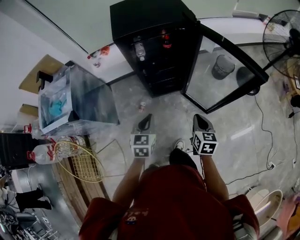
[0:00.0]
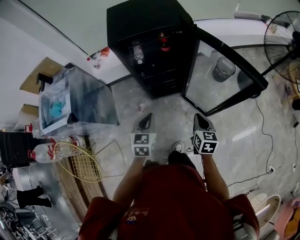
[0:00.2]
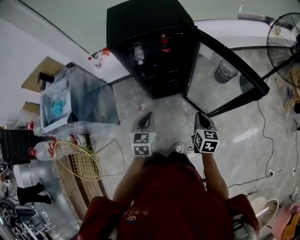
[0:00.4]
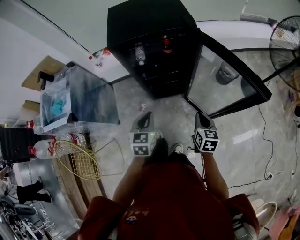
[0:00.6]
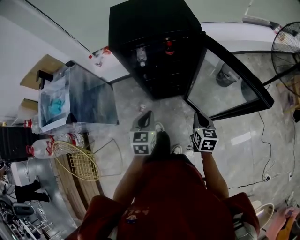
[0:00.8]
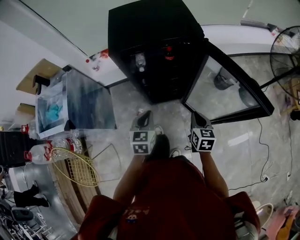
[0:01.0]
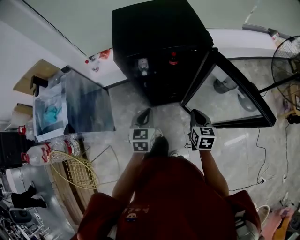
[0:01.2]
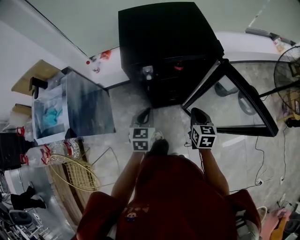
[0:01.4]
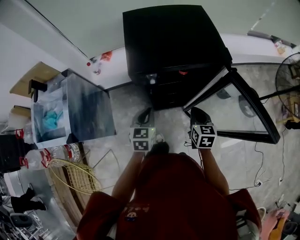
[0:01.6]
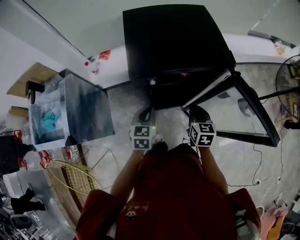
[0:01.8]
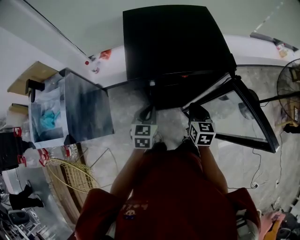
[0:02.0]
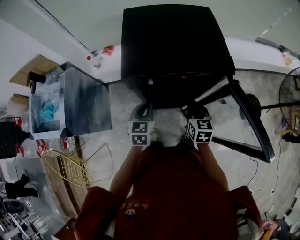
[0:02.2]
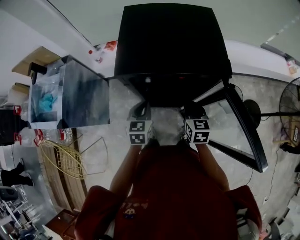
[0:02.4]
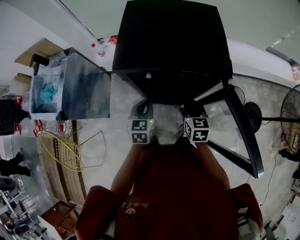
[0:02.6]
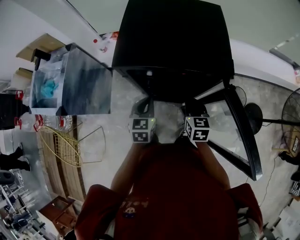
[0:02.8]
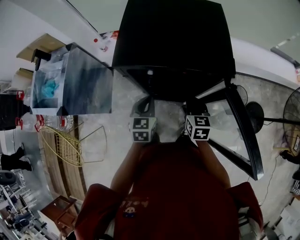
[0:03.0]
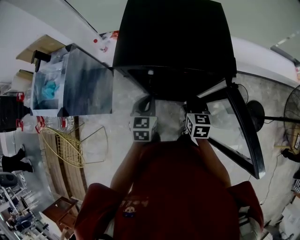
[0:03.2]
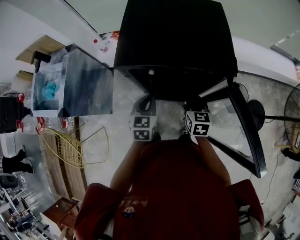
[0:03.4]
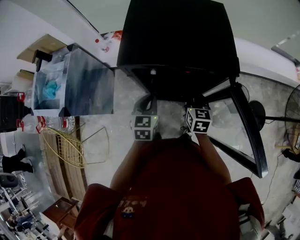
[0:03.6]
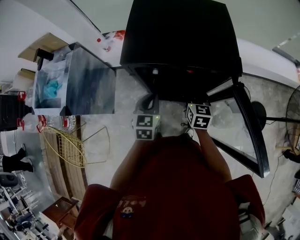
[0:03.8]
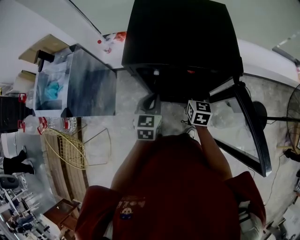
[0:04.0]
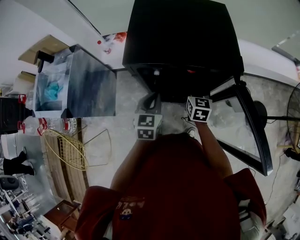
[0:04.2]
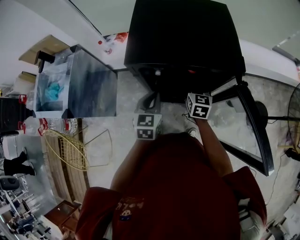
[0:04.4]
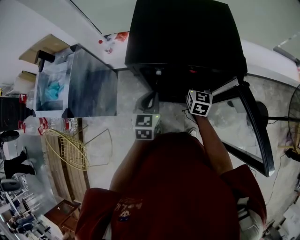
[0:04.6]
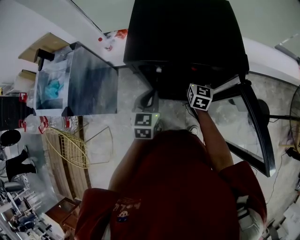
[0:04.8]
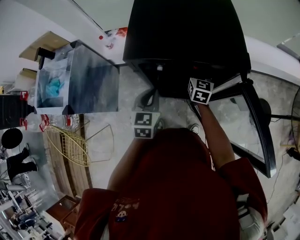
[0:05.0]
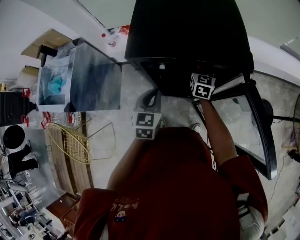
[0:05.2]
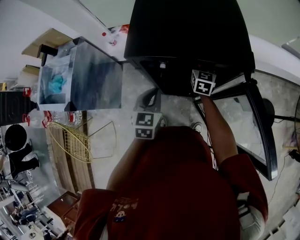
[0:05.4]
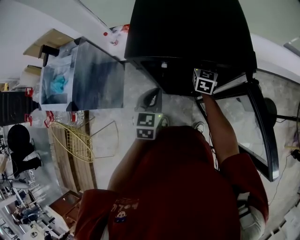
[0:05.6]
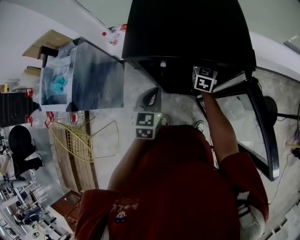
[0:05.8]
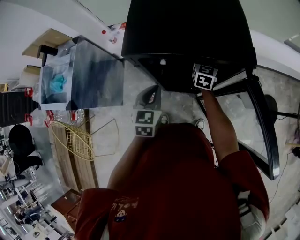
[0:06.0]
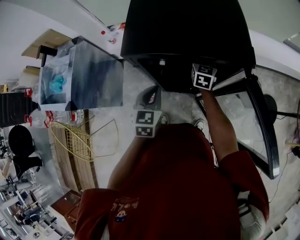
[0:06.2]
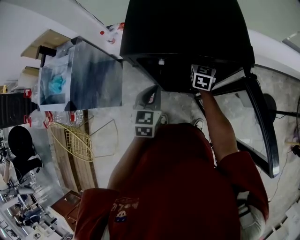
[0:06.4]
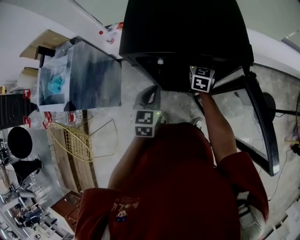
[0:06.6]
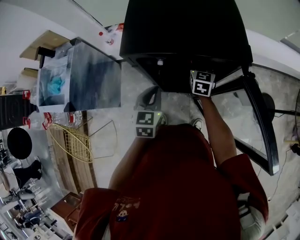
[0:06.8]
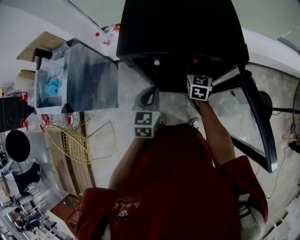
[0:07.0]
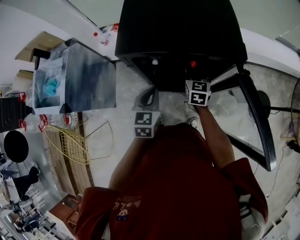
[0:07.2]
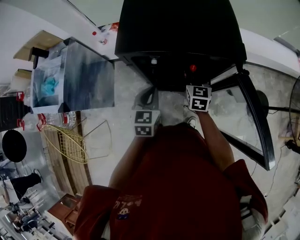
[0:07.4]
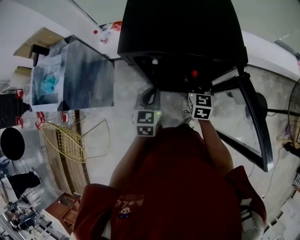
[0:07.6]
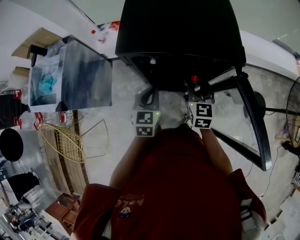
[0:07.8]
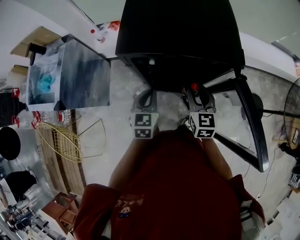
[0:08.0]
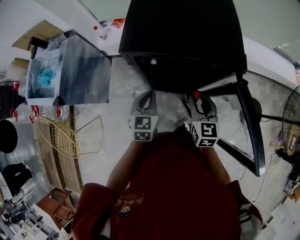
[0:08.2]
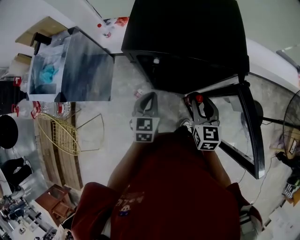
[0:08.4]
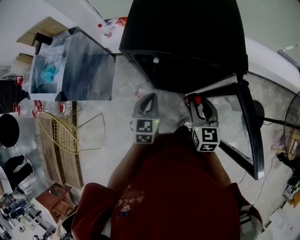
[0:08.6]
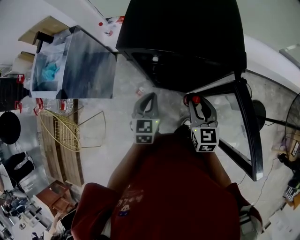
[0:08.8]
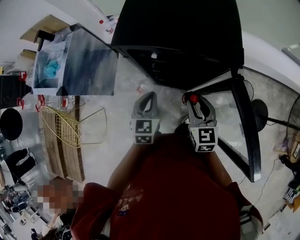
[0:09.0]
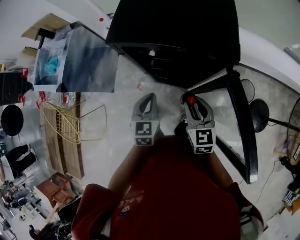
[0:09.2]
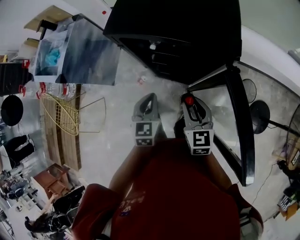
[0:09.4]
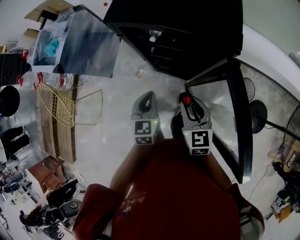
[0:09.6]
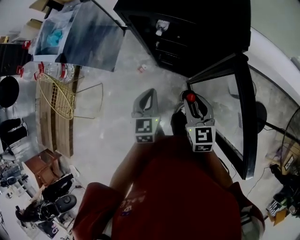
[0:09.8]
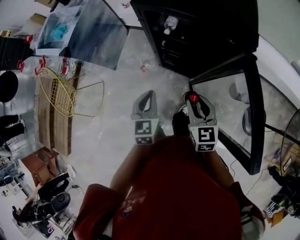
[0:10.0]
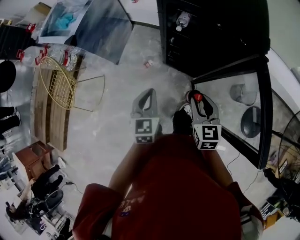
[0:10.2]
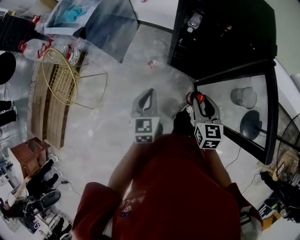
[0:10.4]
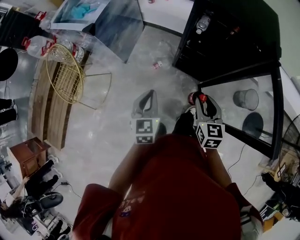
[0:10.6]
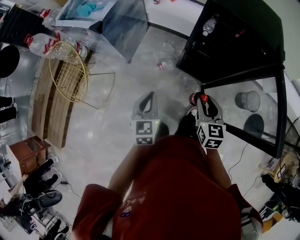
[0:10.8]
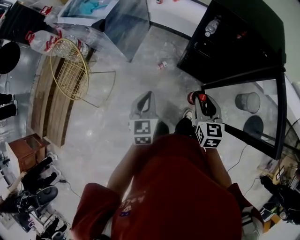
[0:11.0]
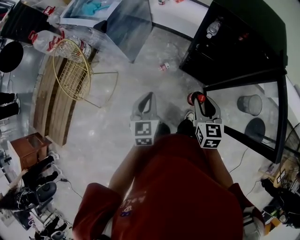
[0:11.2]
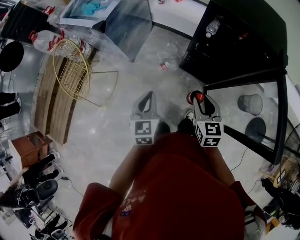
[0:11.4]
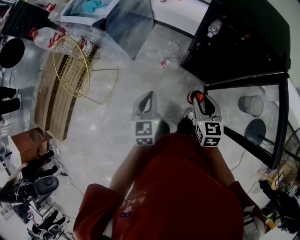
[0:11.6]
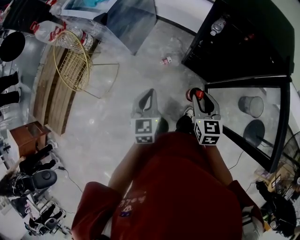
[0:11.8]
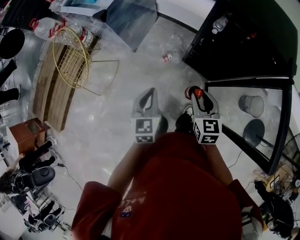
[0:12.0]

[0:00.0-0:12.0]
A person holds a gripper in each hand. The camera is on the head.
0:00.0 to 0:01.6: Both grippers move forward, approximately 25 cm.
0:01.6 to 0:03.0: The left gripper travels to the right by roughly 5 cm. Meanwhile the right gripper goes some 10 cm forward.
0:03.0 to 0:04.4: The right gripper moves forward, some 10 cm, and opens up.
0:04.4 to 0:06.0: The right gripper is displaced forward by about 10 cm.
0:06.0 to 0:07.6: The right gripper goes some 15 cm backward.
0:07.6 to 0:09.0: The right gripper shifts roughly 10 cm backward.
0:09.0 to 0:10.4: The grippers both shift backward and to the left by about 20 cm.
0:10.4 to 0:12.0: The two grippers go about 10 cm to the left.

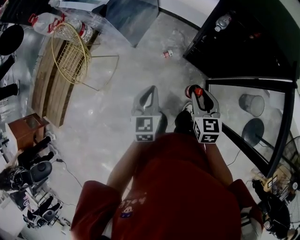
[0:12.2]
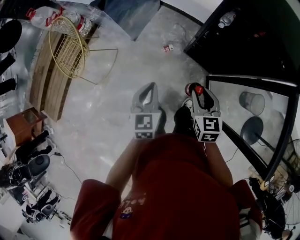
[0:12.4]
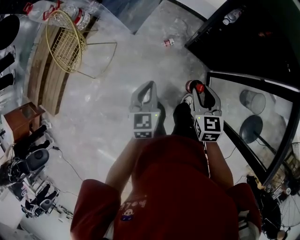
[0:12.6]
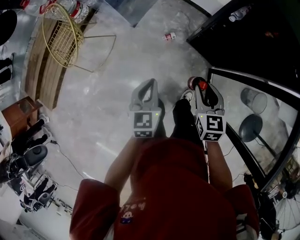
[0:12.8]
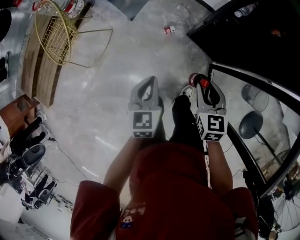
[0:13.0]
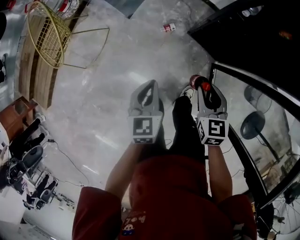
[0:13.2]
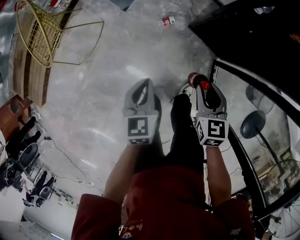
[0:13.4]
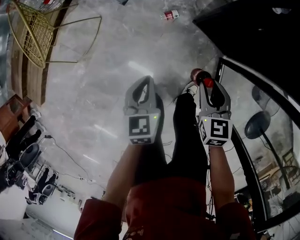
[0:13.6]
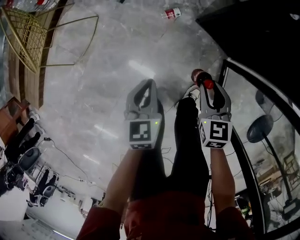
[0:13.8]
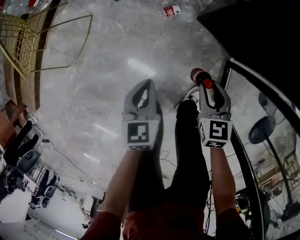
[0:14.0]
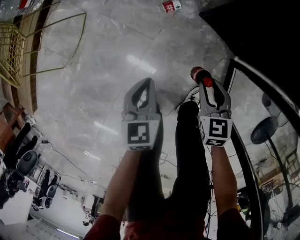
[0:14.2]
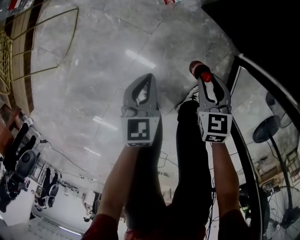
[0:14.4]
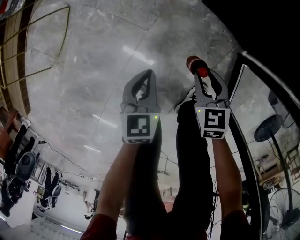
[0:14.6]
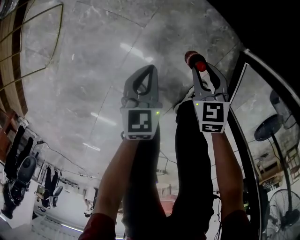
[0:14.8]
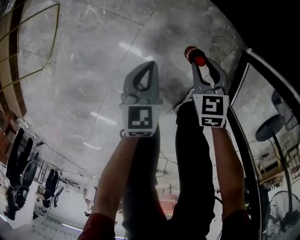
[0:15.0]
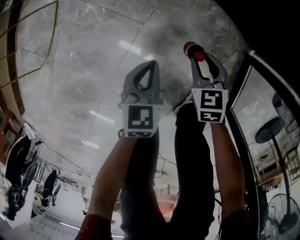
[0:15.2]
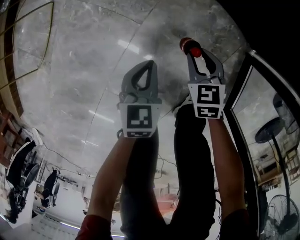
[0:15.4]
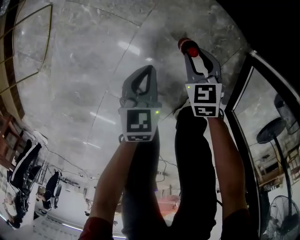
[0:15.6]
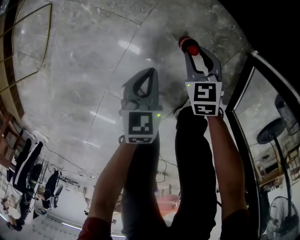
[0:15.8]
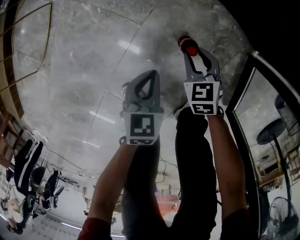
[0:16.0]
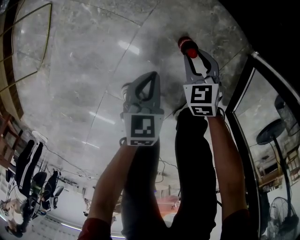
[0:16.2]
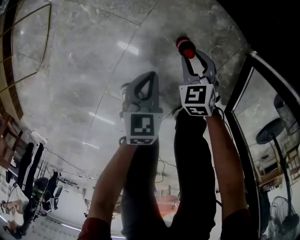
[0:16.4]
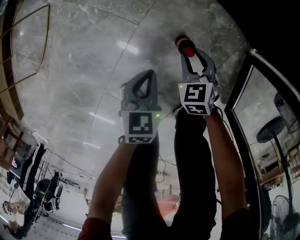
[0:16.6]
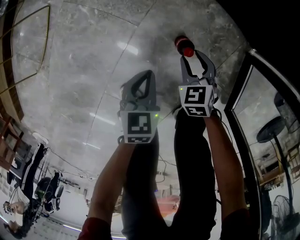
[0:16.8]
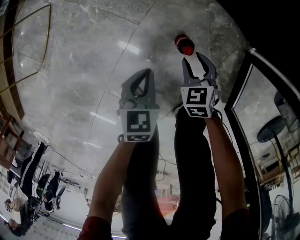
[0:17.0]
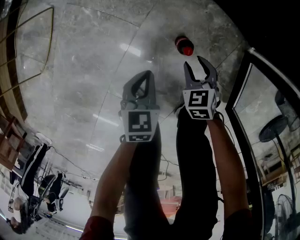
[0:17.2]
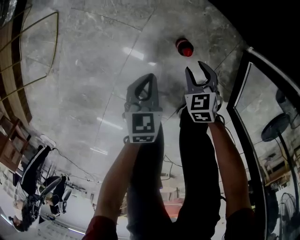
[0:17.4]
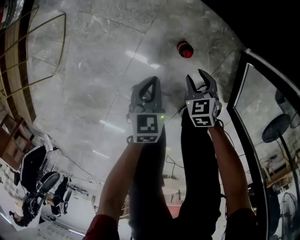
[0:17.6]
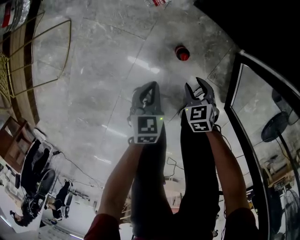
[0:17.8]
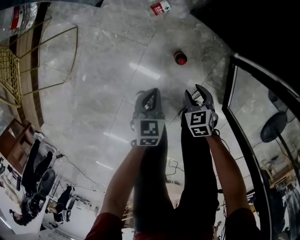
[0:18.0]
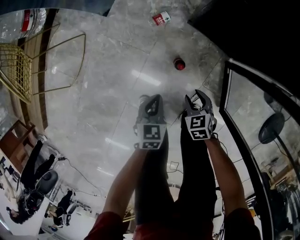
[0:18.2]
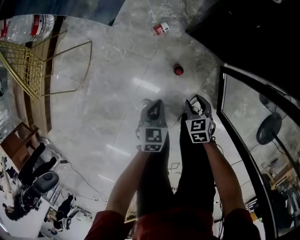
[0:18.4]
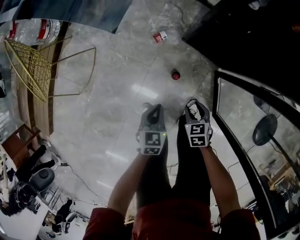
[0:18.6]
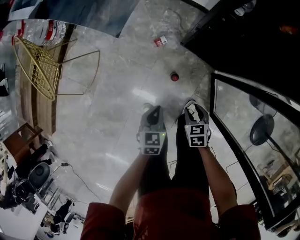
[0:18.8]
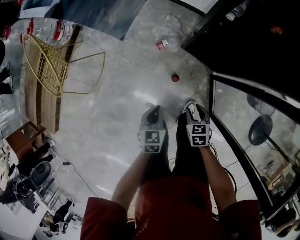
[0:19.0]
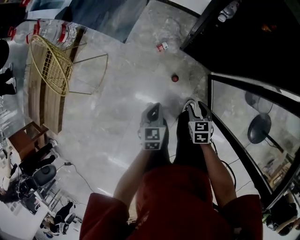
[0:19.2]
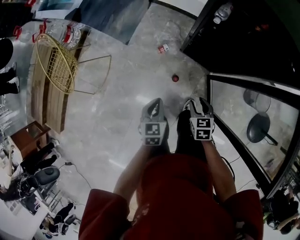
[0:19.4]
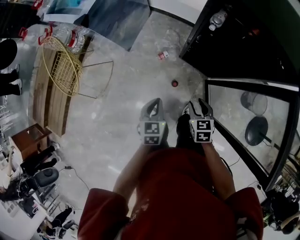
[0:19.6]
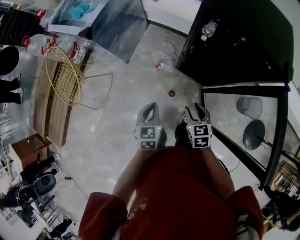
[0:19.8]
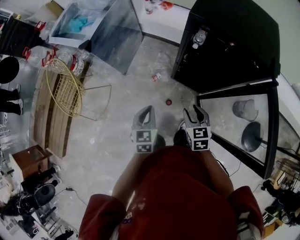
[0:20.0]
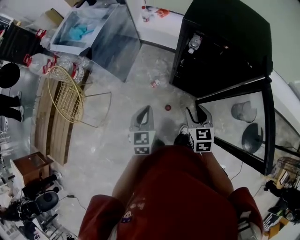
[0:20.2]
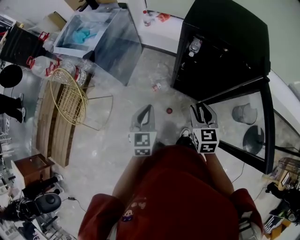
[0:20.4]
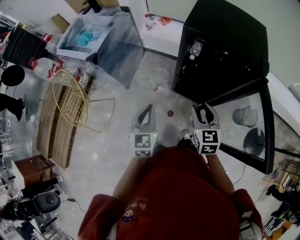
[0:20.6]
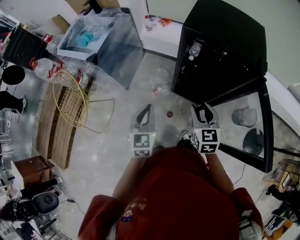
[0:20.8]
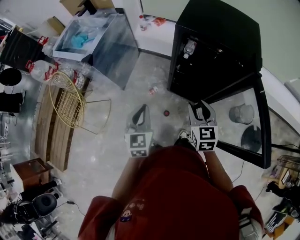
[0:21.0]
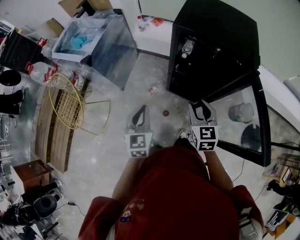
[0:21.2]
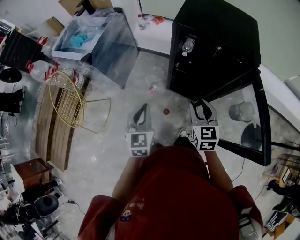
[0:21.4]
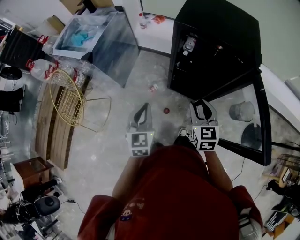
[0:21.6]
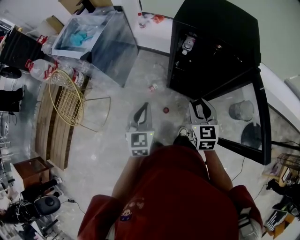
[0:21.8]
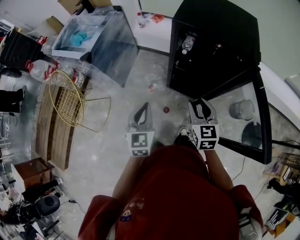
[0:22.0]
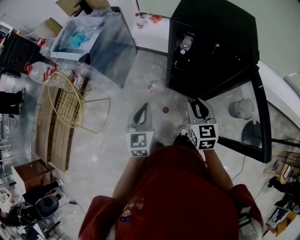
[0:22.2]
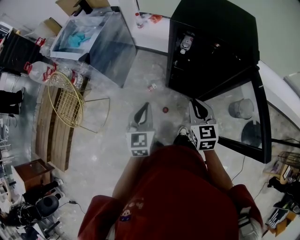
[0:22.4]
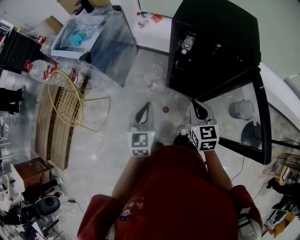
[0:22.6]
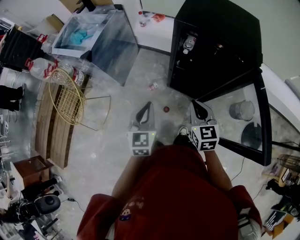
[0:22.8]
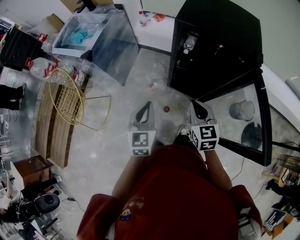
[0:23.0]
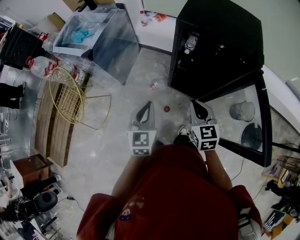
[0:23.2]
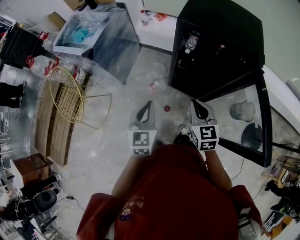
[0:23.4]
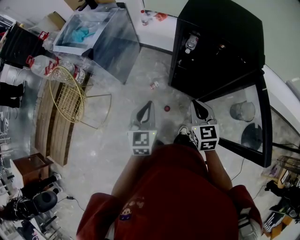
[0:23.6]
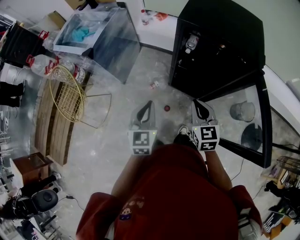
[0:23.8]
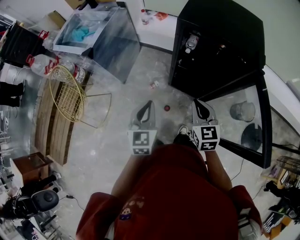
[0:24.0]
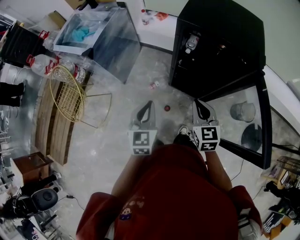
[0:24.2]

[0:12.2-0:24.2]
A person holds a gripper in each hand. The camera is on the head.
0:12.2 to 0:13.8: The two grippers go about 30 cm downward.
0:13.8 to 0:15.2: The two grippers go roughly 35 cm downward.
0:15.2 to 0:16.6: The left gripper changes place by some 5 cm, while the right gripper is displaced downward by approximately 5 cm.
0:16.6 to 0:18.2: The two grippers go about 20 cm upward.
0:18.2 to 0:19.8: The grippers both shift upward by about 50 cm. The right gripper swivels roughly 20 degrees.
0:19.8 to 0:21.2: The grippers both shift upward by about 15 cm. The right gripper changes its angle by about 20 degrees.
0:21.2 to 0:22.6: The right gripper closes its fingers.
0:22.6 to 0:24.2: The two grippers keep their place.
